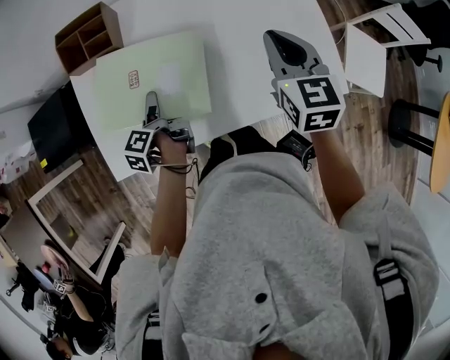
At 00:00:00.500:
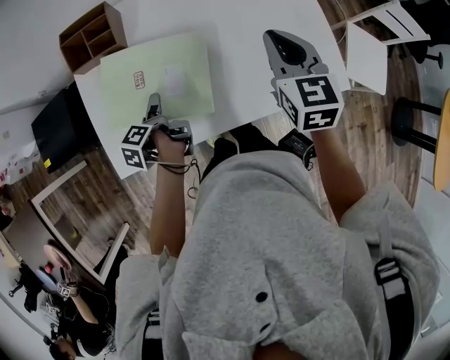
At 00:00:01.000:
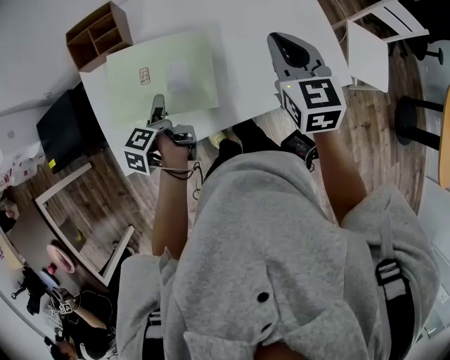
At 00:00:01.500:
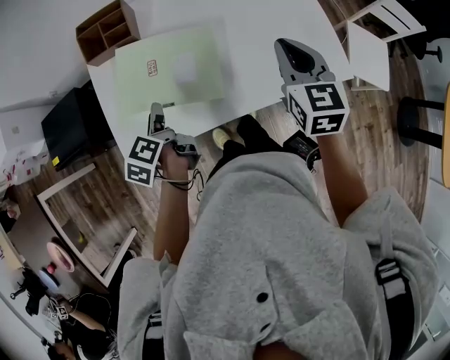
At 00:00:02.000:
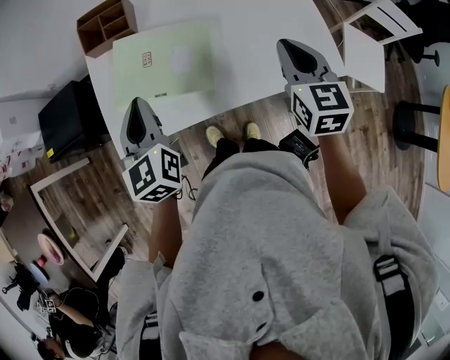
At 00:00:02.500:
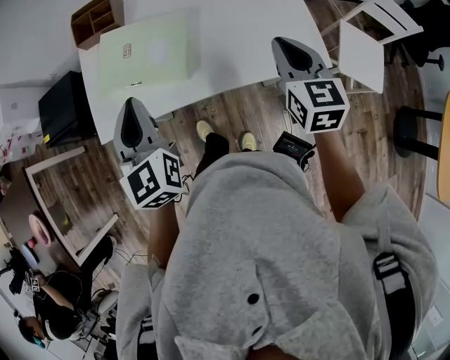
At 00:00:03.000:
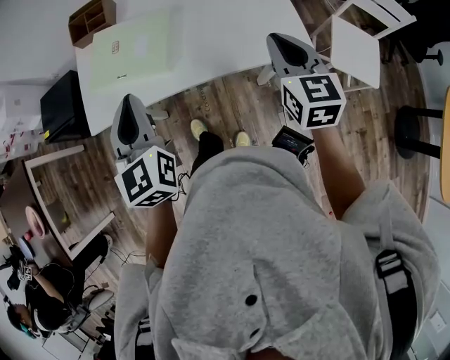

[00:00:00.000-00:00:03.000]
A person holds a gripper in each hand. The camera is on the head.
00:00:00.000 to 00:00:01.500: The left gripper is displaced upward by roughly 10 cm, changes its angle by approximately 20 degrees, and closes up. Meanwhile the right gripper heads backward, covering about 5 cm.
00:00:01.500 to 00:00:03.000: The right gripper shifts roughly 20 cm backward and to the right. The left gripper goes roughly 30 cm upward, backward and to the right, twists some 60 degrees clockwise, seen from behind, and closes up.

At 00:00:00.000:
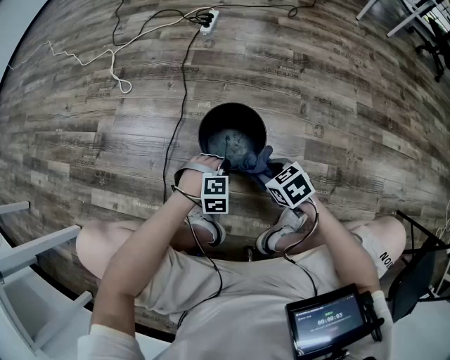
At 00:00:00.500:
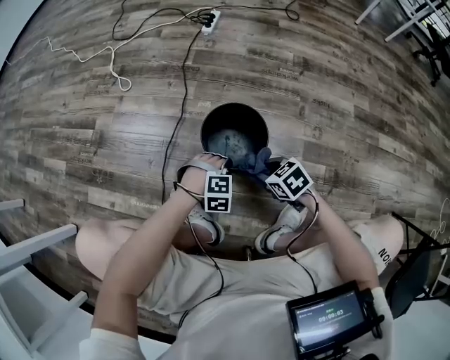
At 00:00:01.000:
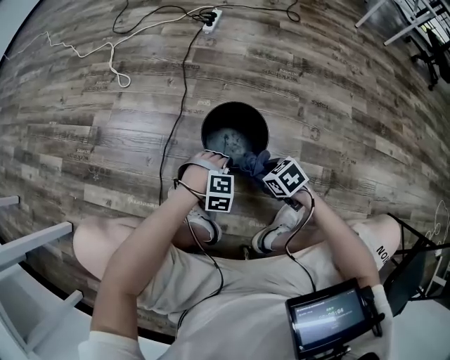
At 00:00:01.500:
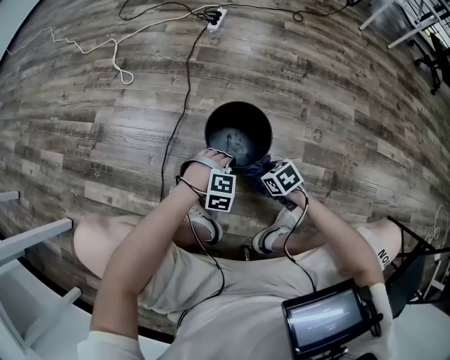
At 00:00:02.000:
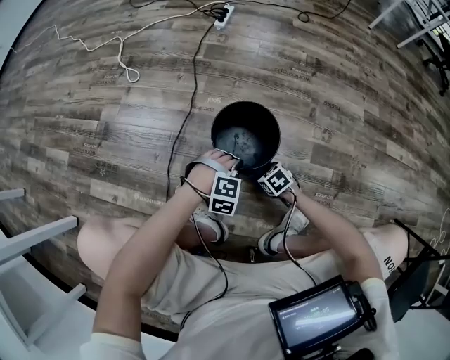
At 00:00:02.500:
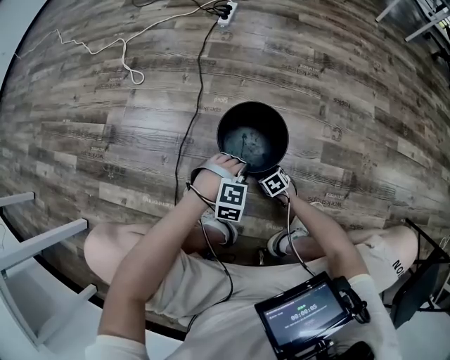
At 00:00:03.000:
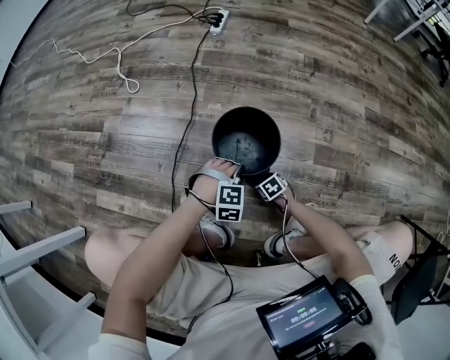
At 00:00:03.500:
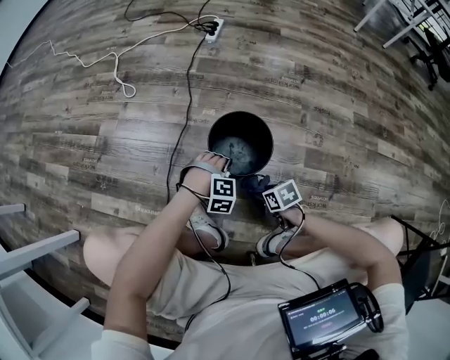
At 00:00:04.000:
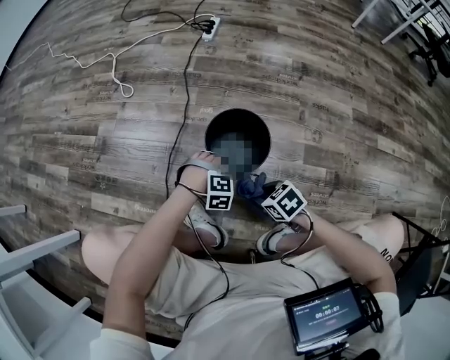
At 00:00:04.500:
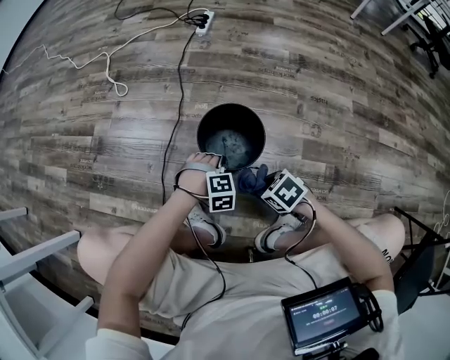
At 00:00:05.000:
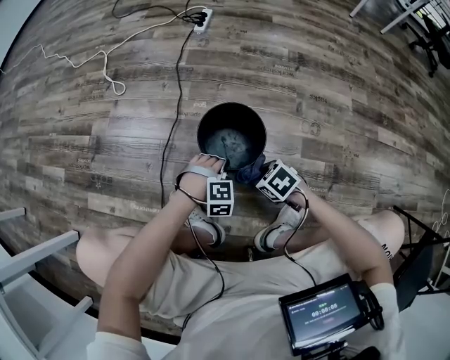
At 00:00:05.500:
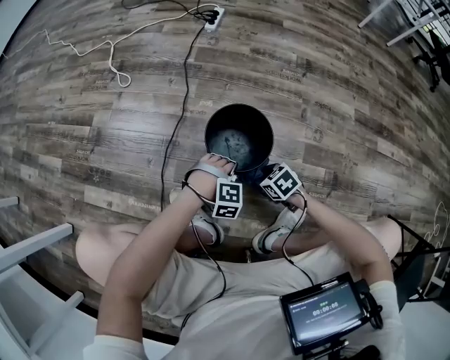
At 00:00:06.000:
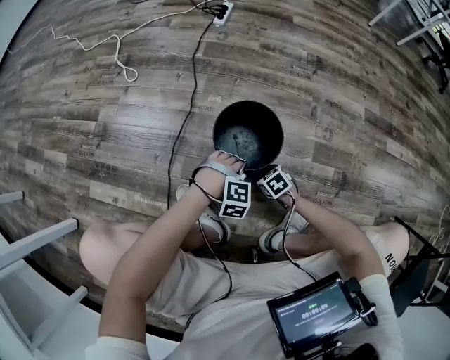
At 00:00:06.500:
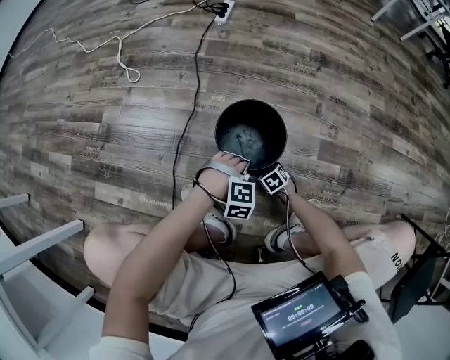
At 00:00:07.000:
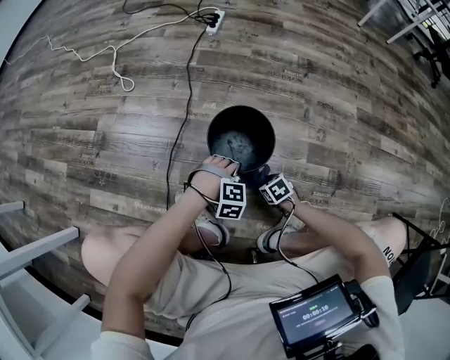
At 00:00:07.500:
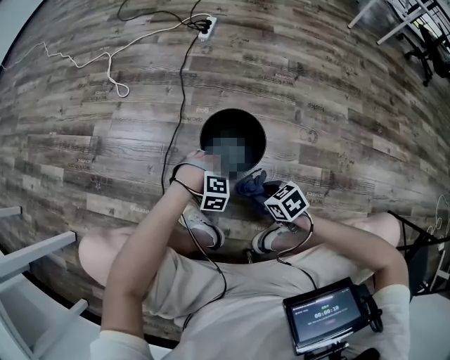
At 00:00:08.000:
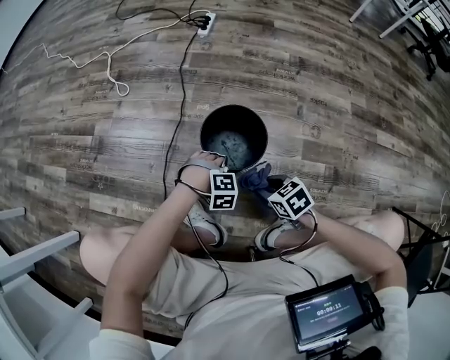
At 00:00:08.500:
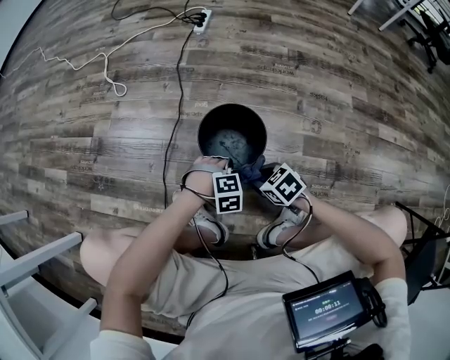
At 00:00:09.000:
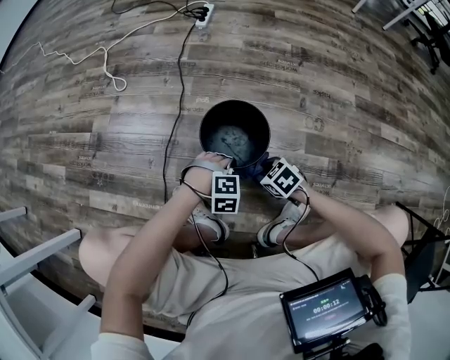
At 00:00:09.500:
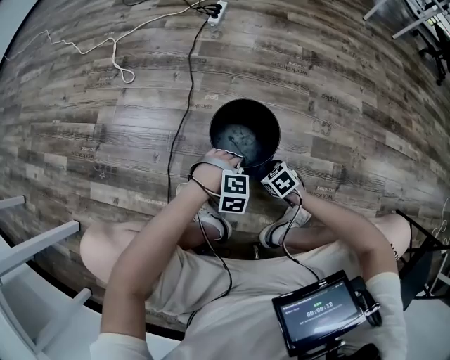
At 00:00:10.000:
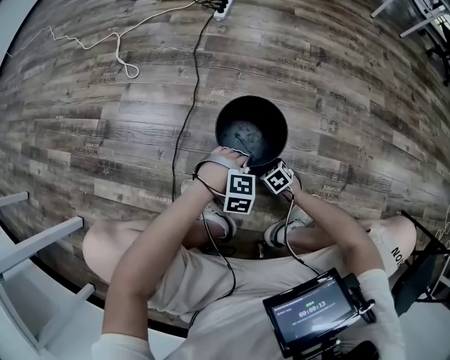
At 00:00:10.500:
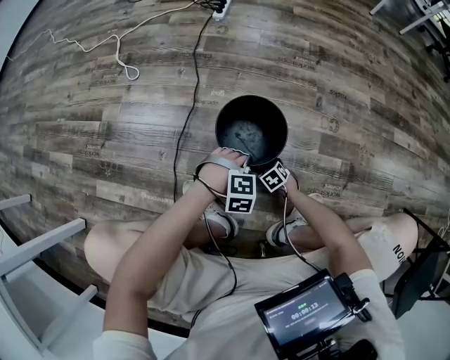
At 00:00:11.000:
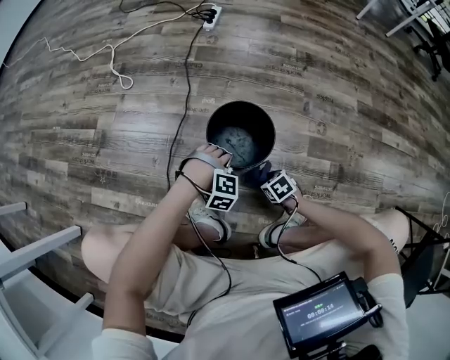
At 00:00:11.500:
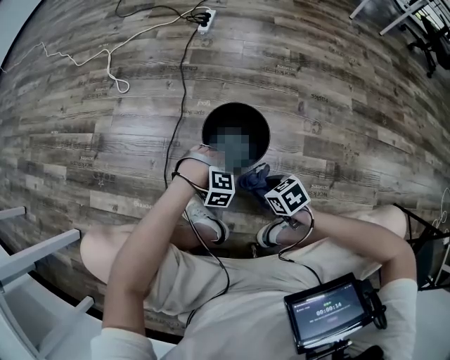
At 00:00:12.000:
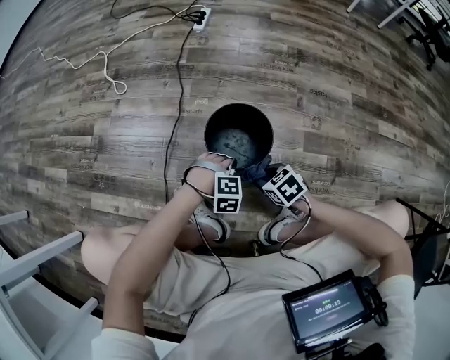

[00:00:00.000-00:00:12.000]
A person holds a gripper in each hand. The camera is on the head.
00:00:00.000 to 00:00:02.000: The right gripper is displaced downward by approximately 20 cm.
00:00:02.000 to 00:00:04.000: The right gripper heads upward, covering roughly 15 cm.
00:00:04.000 to 00:00:06.000: The right gripper is displaced downward by roughly 15 cm.
00:00:06.000 to 00:00:08.000: The right gripper travels upward by some 15 cm.
00:00:08.000 to 00:00:10.000: The right gripper goes some 20 cm downward.
00:00:10.000 to 00:00:12.000: The right gripper is displaced upward by about 15 cm.

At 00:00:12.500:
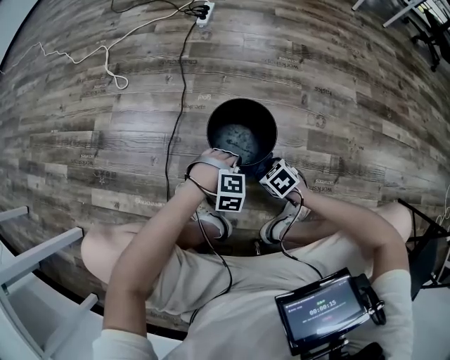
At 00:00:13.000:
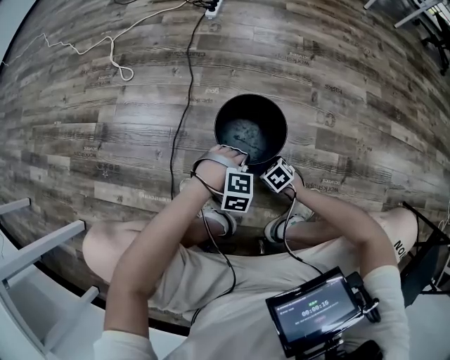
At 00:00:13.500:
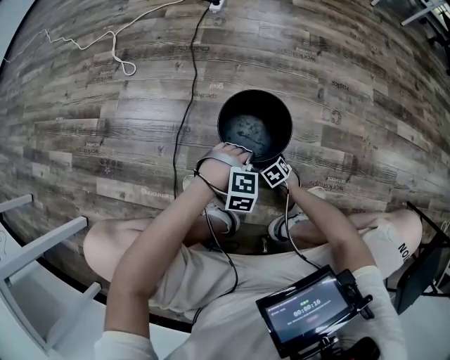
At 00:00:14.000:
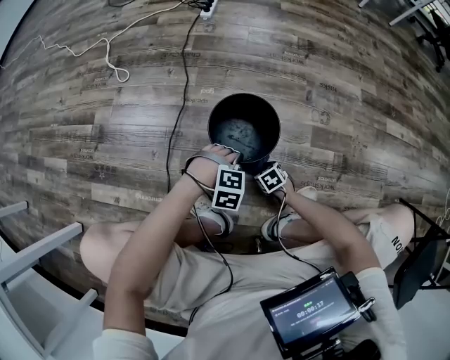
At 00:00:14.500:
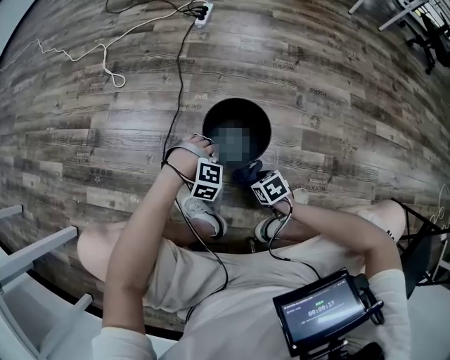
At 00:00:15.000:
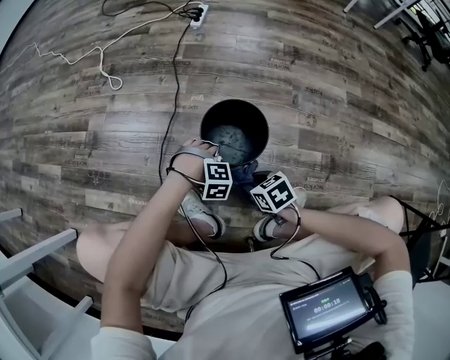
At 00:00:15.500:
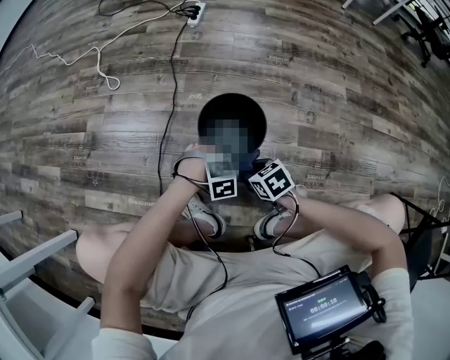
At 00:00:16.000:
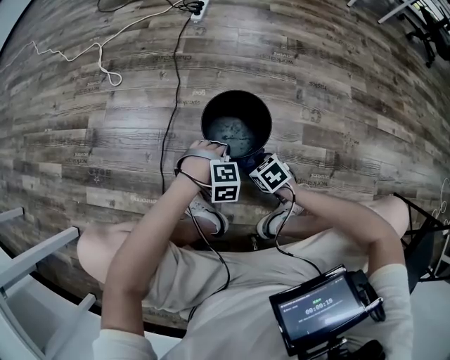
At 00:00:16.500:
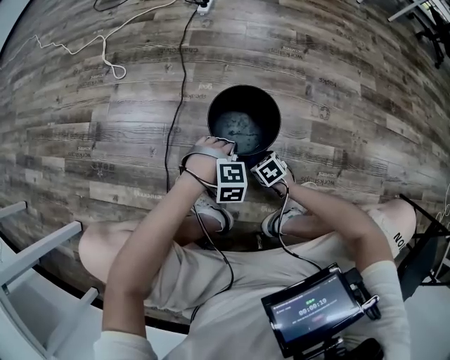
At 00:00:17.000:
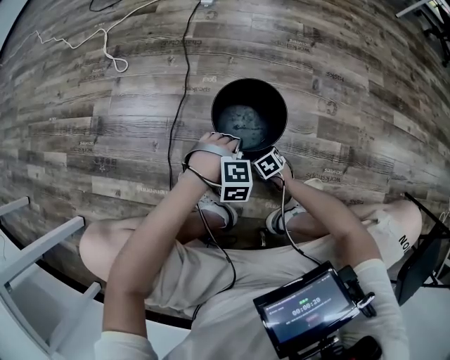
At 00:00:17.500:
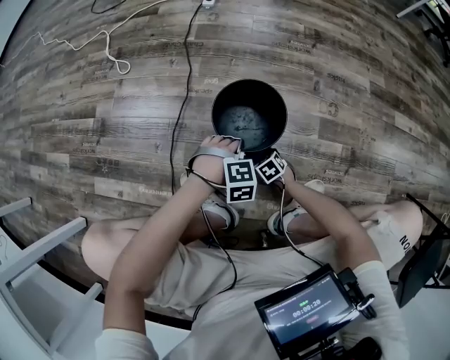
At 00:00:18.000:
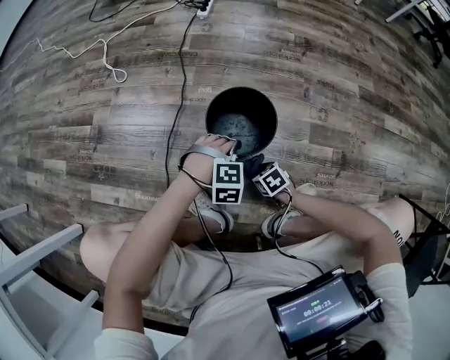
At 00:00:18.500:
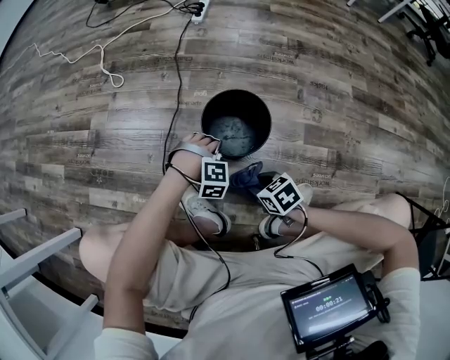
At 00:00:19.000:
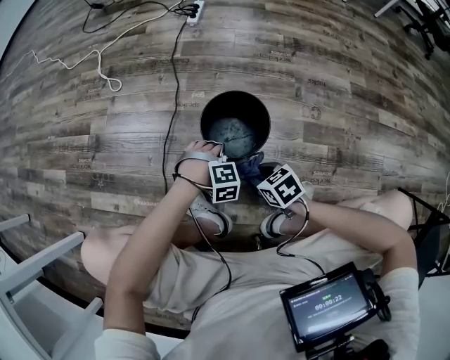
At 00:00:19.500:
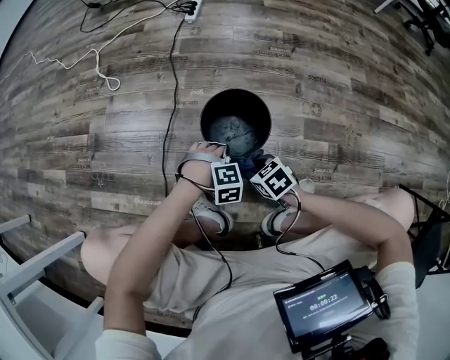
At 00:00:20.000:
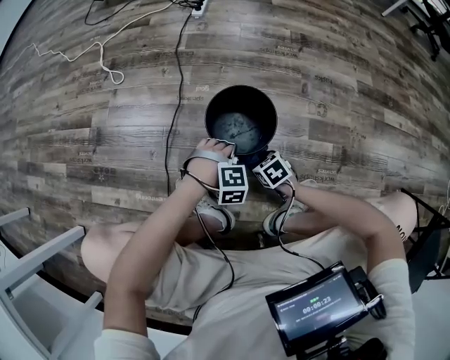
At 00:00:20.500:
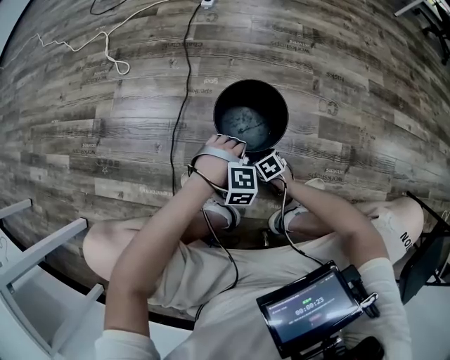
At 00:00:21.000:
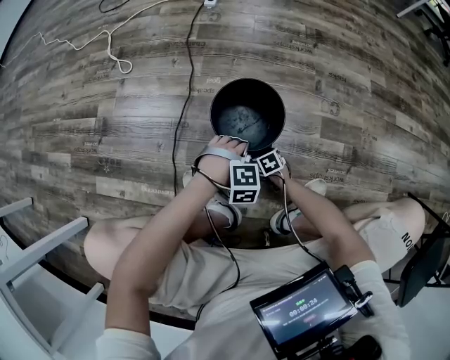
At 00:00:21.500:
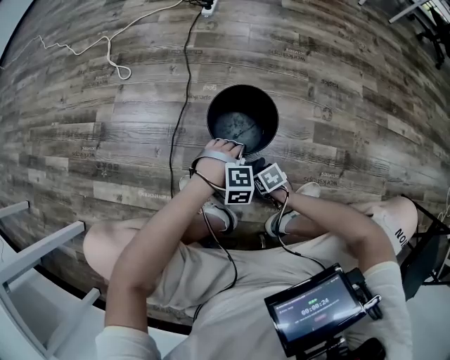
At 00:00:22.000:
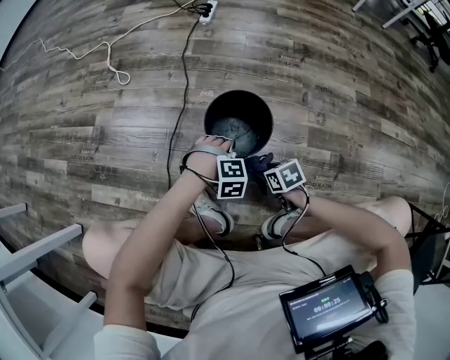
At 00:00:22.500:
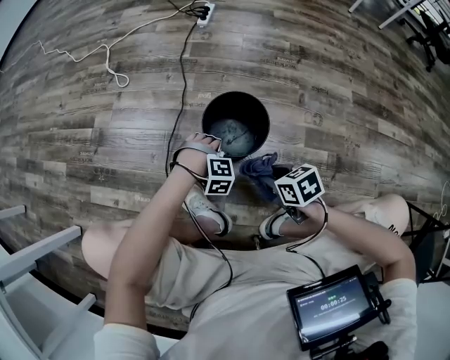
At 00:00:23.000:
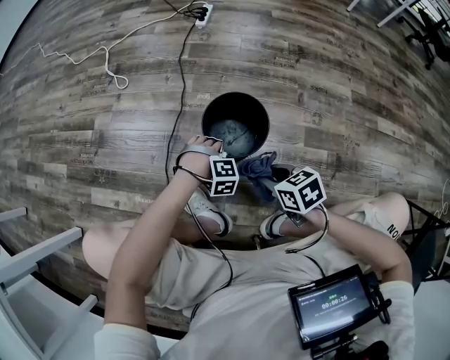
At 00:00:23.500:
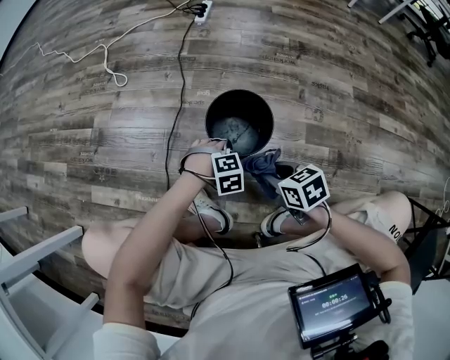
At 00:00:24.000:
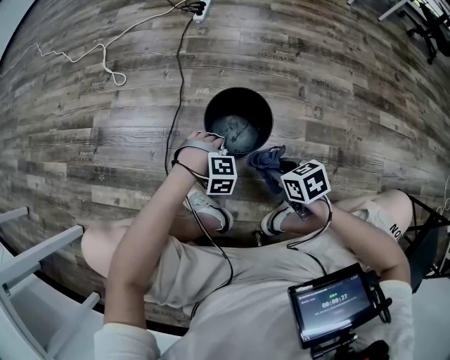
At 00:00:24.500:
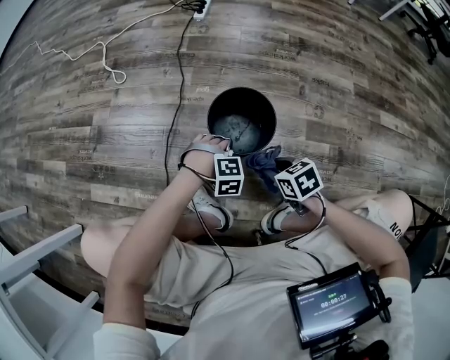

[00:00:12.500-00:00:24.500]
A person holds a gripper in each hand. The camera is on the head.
00:00:12.500 to 00:00:14.500: The right gripper moves some 15 cm downward and comes back.
00:00:14.500 to 00:00:16.500: The right gripper travels downward by about 5 cm.
00:00:16.500 to 00:00:18.500: The right gripper is displaced upward by some 15 cm.
00:00:18.500 to 00:00:20.500: The right gripper goes roughly 20 cm downward.
00:00:20.500 to 00:00:22.500: The right gripper is displaced upward by roughly 25 cm.
